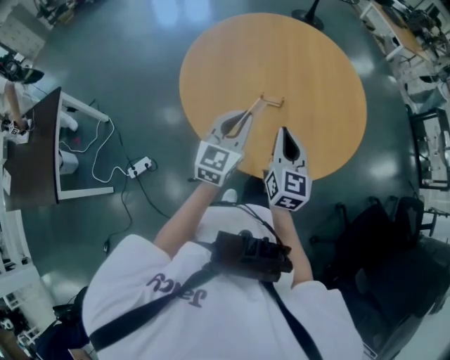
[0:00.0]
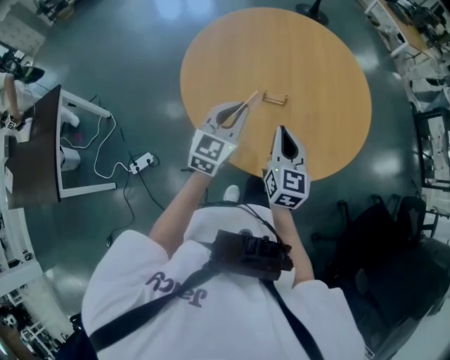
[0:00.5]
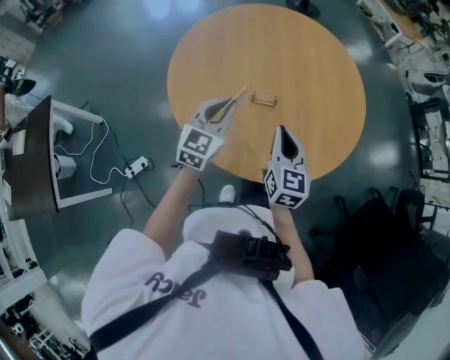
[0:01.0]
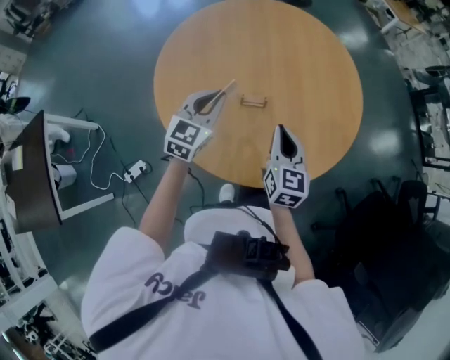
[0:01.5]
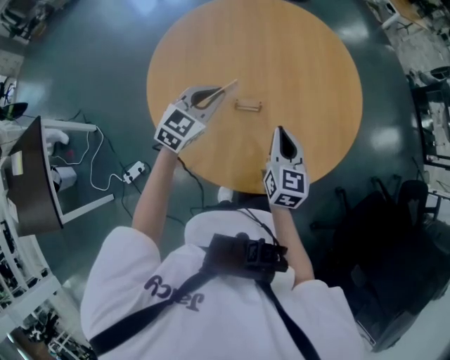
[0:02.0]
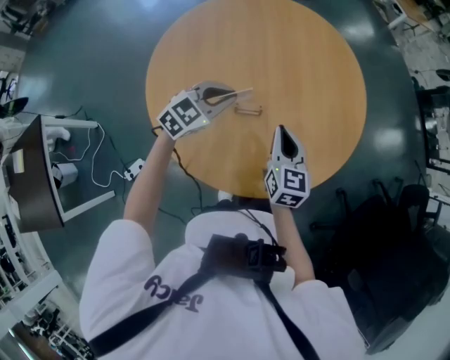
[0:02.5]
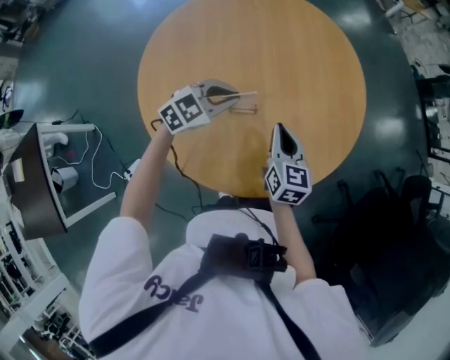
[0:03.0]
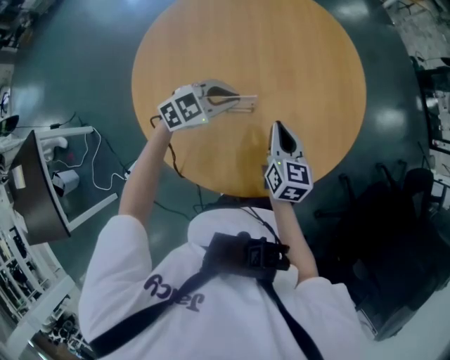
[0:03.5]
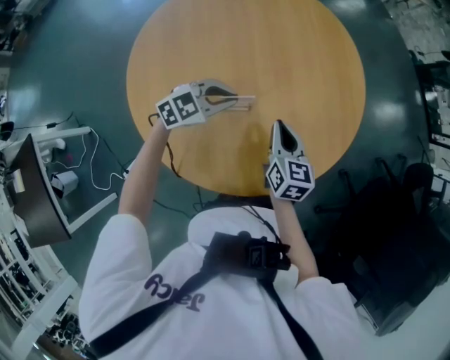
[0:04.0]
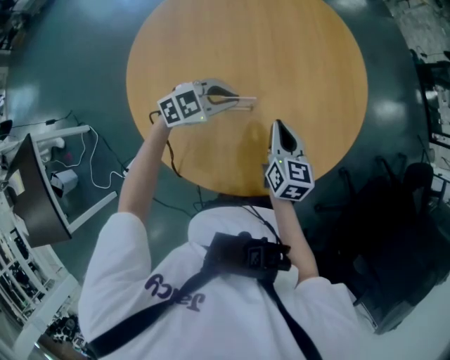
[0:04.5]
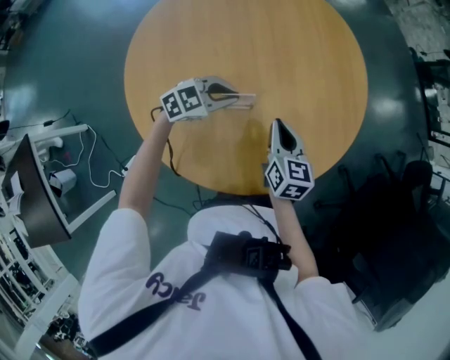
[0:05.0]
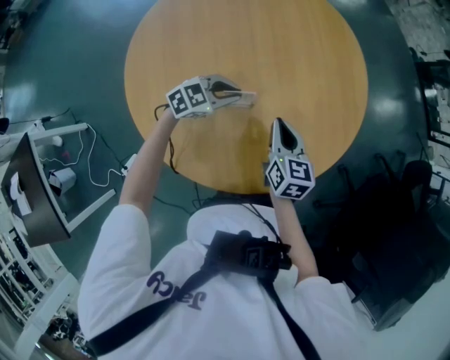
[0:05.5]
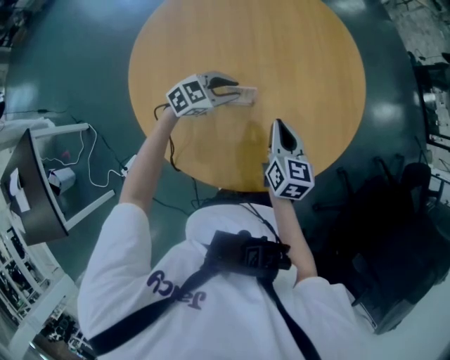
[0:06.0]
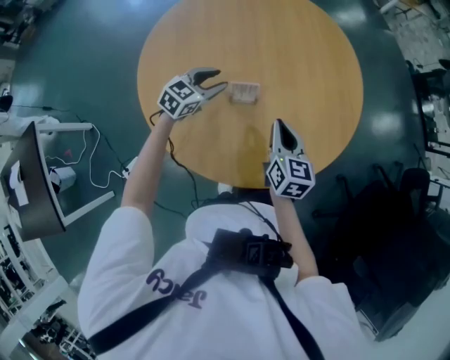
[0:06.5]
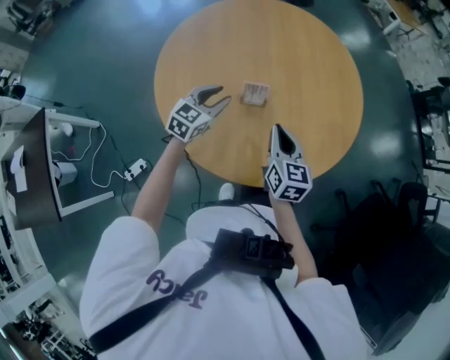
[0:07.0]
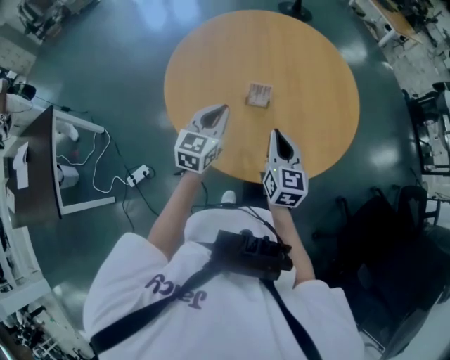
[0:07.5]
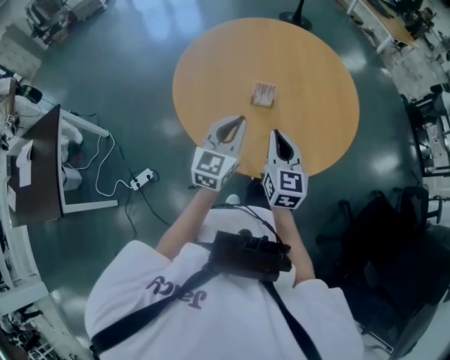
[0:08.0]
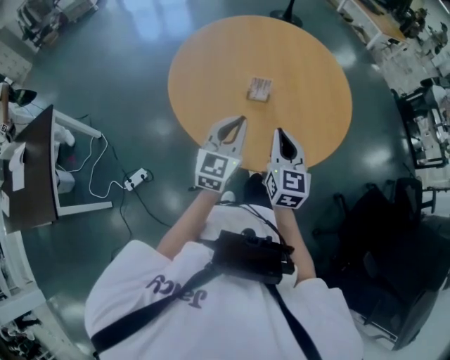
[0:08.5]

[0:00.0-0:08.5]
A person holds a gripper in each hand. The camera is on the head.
0:00.0 to 0:02.0: The left gripper shifts roughly 15 cm forward, and turns by roughly 30 degrees, while the right gripper shifts about 10 cm forward and to the right.
0:02.0 to 0:04.0: The left gripper heads downward and to the right, covering some 10 cm, and rotates roughly 40 degrees. Meanwhile the right gripper moves roughly 5 cm.
0:04.0 to 0:06.5: The left gripper is displaced to the left by some 10 cm, turns by about 30 degrees, and opens its fingers.
0:06.5 to 0:08.5: The left gripper goes some 25 cm backward and upward, swivels some 40 degrees, and closes up. The right gripper goes some 15 cm backward and upward, and turns by some 20 degrees.

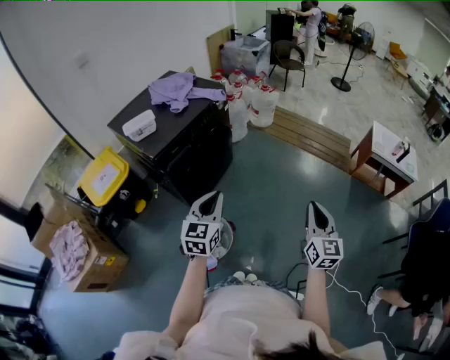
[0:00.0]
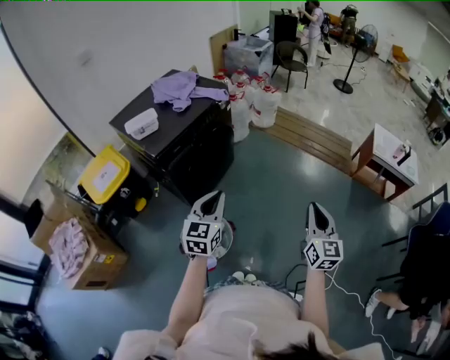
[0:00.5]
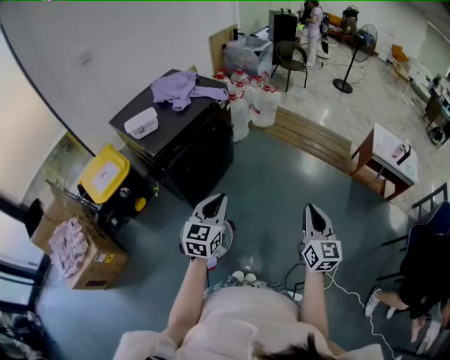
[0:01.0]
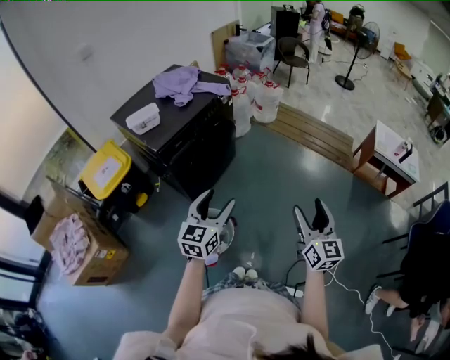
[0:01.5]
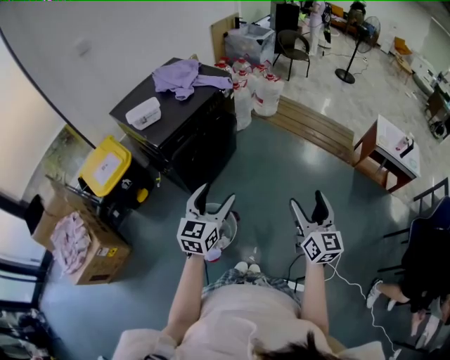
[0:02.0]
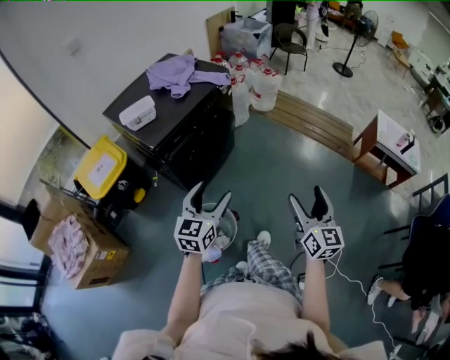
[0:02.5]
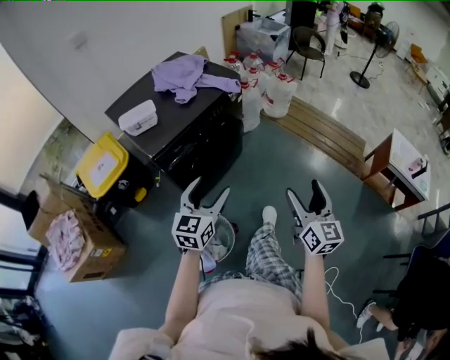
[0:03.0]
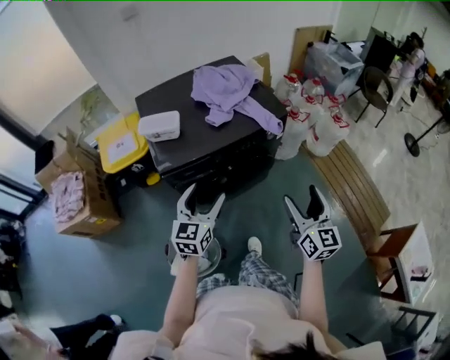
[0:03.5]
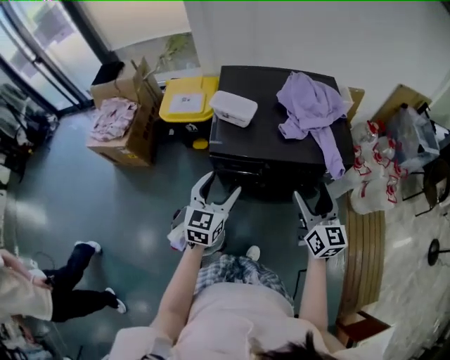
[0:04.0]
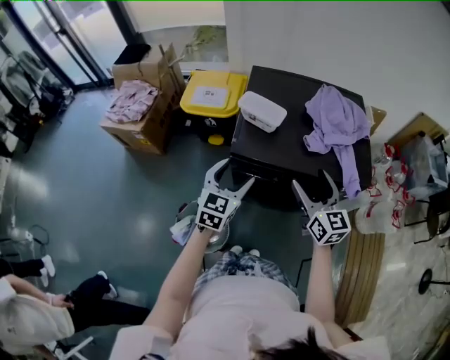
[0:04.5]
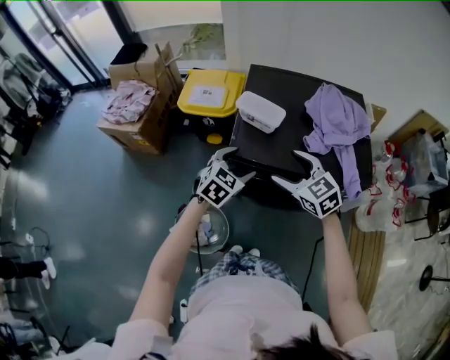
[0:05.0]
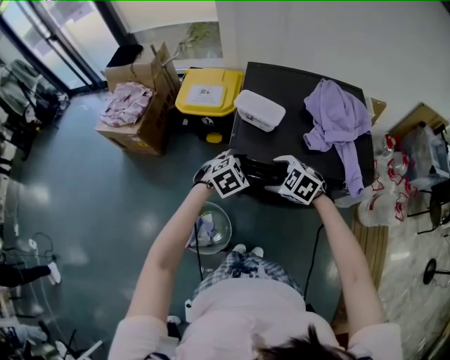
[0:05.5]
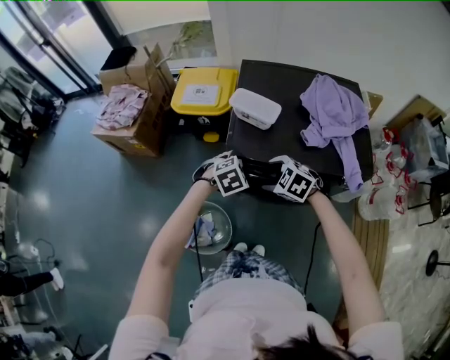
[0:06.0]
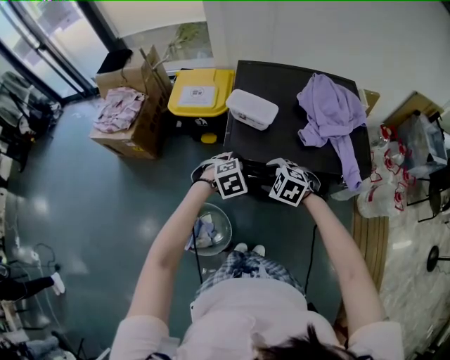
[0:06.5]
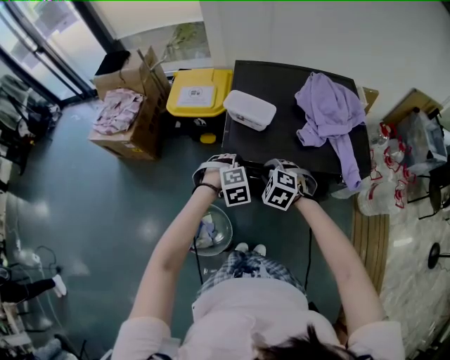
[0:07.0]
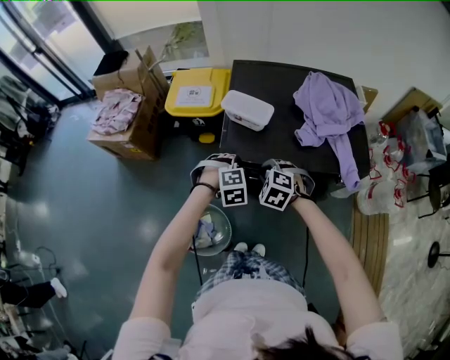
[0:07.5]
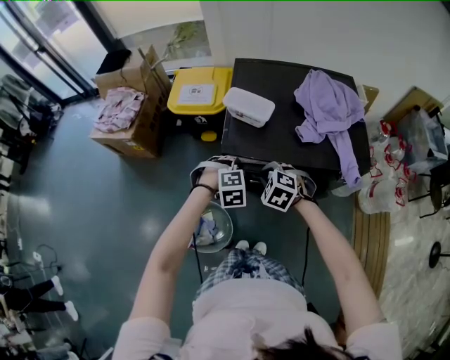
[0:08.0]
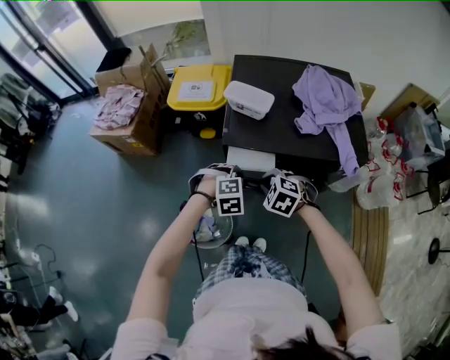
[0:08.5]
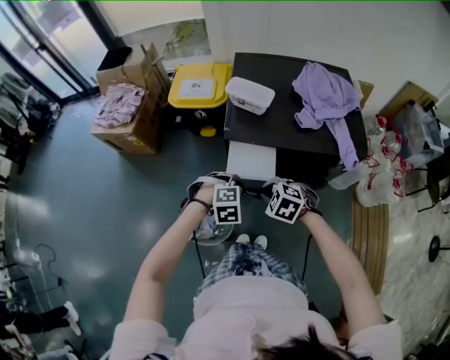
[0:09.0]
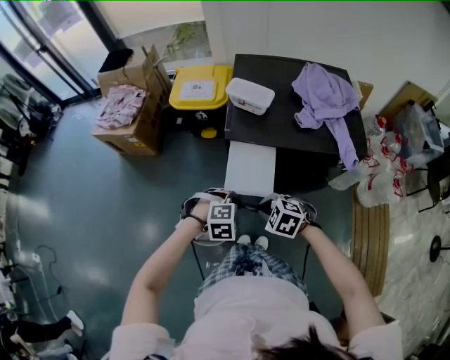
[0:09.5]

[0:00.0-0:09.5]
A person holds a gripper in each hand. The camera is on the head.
0:00.0 to 0:02.0: The left gripper opens up; the right gripper is displaced to the left by some 5 cm, and opens up.
0:02.0 to 0:04.0: The right gripper shifts by some 60 cm, and turns by about 60 degrees; the left gripper ends up some 30 cm from where it was, and turns by some 60 degrees.
0:04.0 to 0:05.5: The right gripper goes some 25 cm to the left, downward and forward, and angles its fingers downward, by roughly 50 degrees, while the left gripper moves downward and forward, some 15 cm, and points its fingers approximately 40 degrees further downward.
0:05.5 to 0:07.5: The left gripper swivels about 30 degrees, and closes up. Meanwhile the right gripper changes its angle by about 20 degrees, and closes up.
0:07.5 to 0:09.5: The two grippers go approximately 20 cm backward.

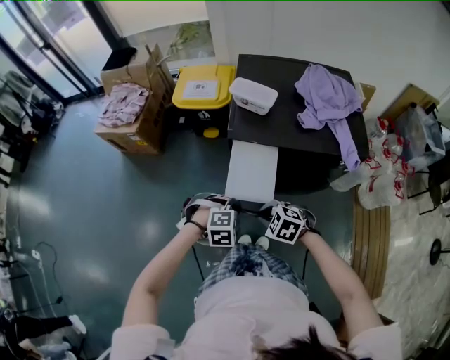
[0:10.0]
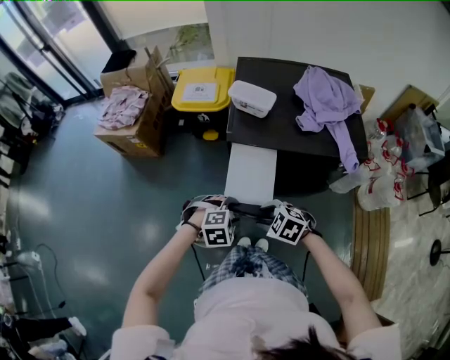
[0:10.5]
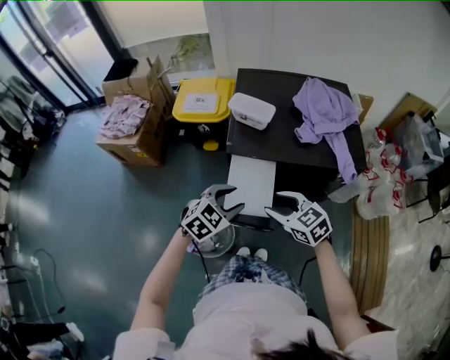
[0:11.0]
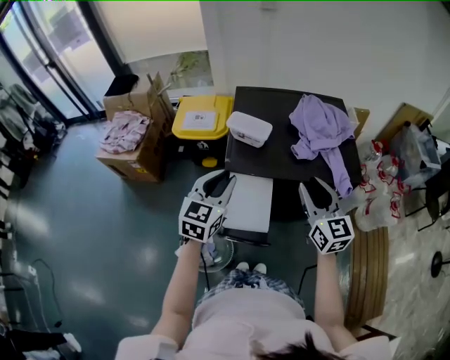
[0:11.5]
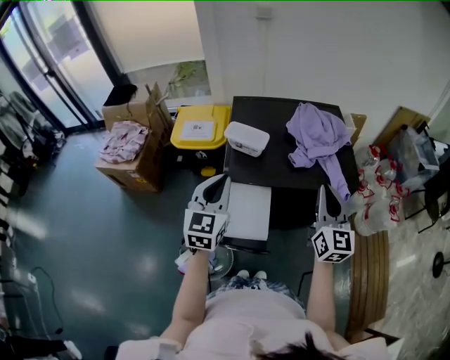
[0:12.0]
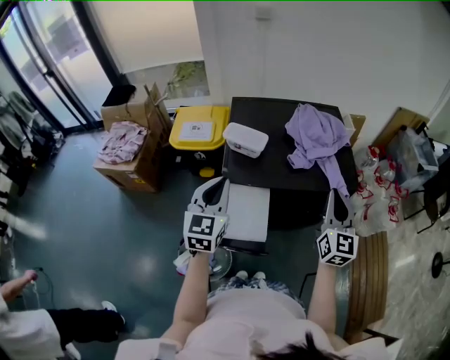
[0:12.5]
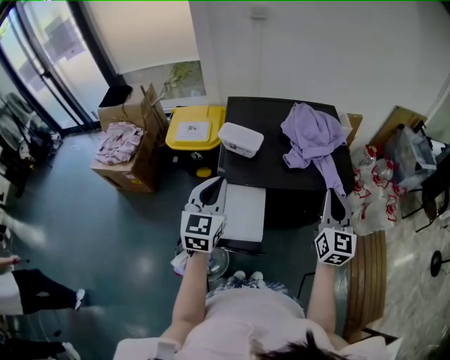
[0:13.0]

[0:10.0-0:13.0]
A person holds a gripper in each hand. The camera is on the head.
0:10.0 to 0:11.5: The two grippers go roughly 25 cm upward. The right gripper tilts its fingers about 60 degrees upward; the left gripper tilts its fingers about 50 degrees upward.
0:11.5 to 0:13.0: The right gripper goes roughly 10 cm to the right, swivels some 20 degrees, and closes its fingers.

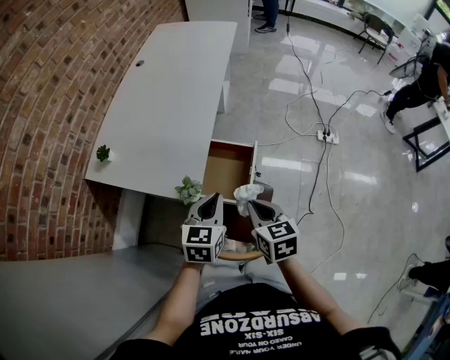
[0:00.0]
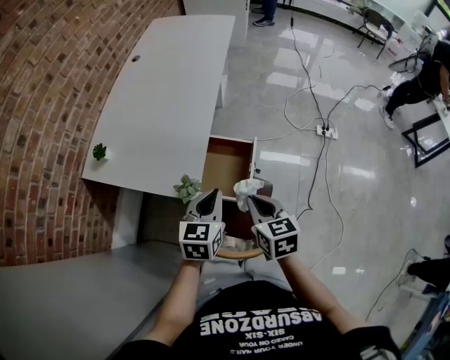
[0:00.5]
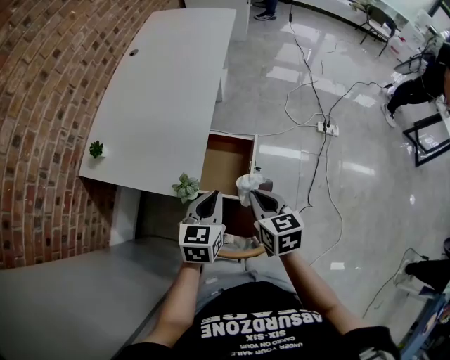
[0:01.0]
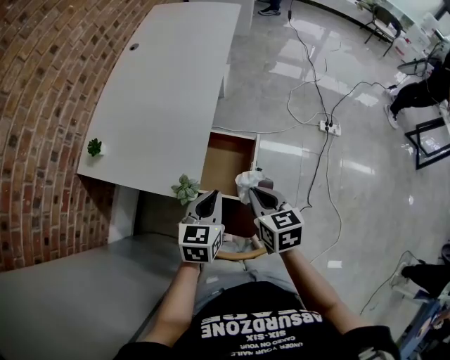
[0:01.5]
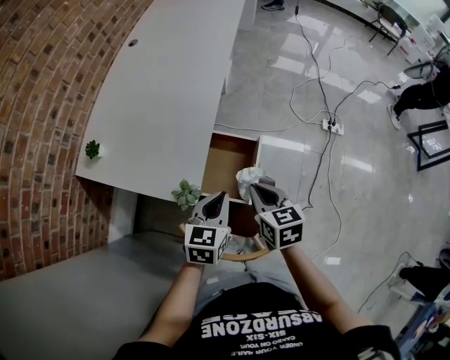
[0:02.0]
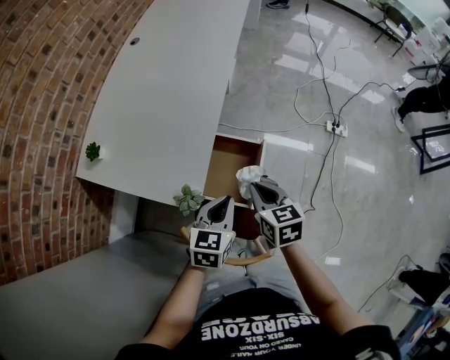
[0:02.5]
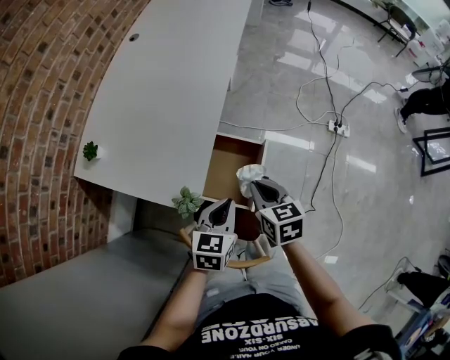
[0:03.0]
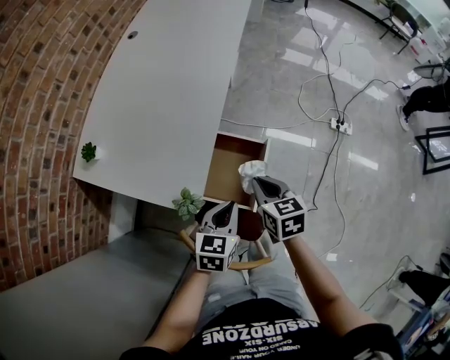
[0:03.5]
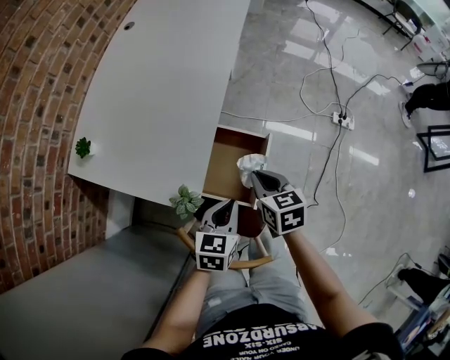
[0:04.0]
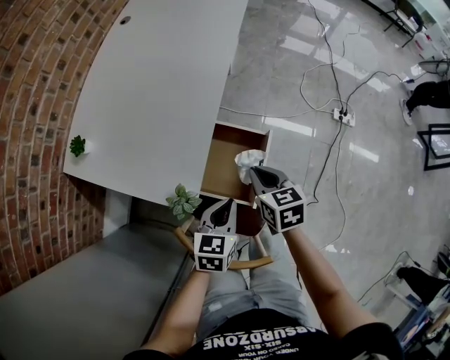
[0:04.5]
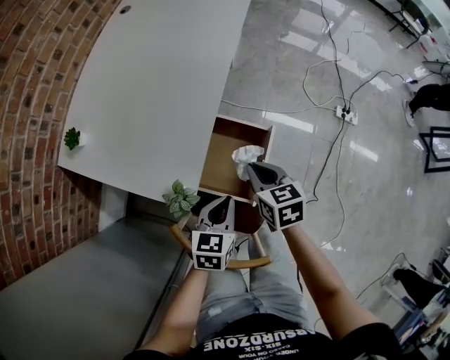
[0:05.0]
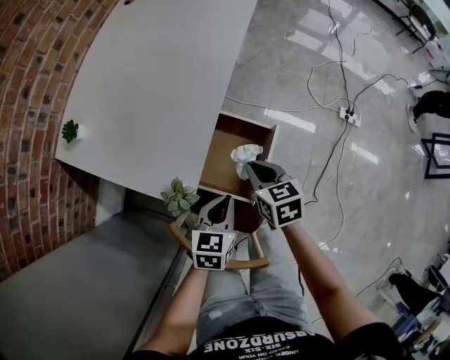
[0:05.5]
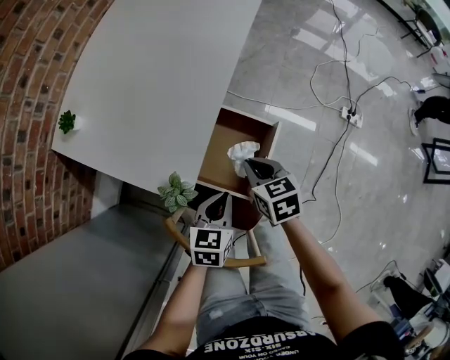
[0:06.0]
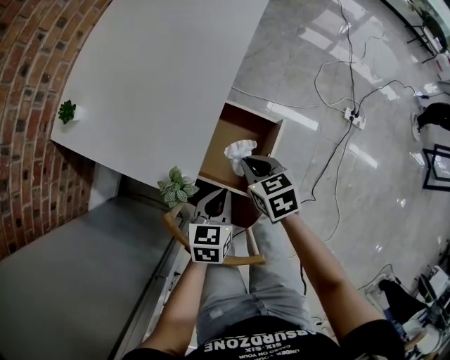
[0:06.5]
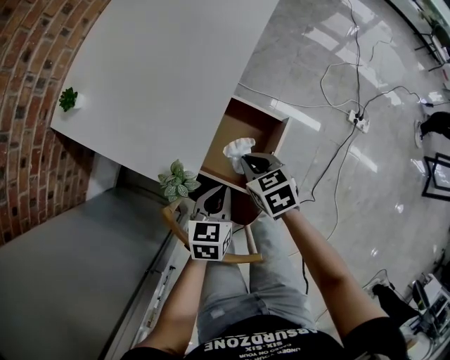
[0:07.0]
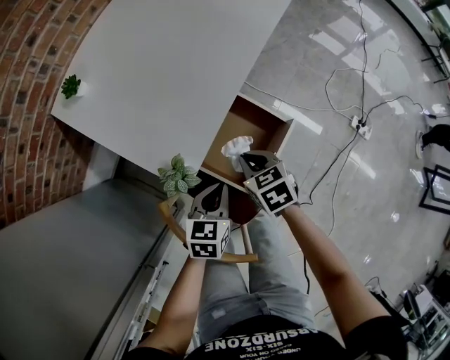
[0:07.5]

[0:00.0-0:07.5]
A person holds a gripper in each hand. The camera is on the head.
0:00.0 to 0:02.0: The right gripper is displaced forward by approximately 10 cm. Meanwhile the left gripper shifts approximately 5 cm forward.
0:02.0 to 0:04.0: The right gripper goes some 10 cm downward and forward. Meanwhile the left gripper shifts some 10 cm downward.
0:04.0 to 0:05.5: Both grippers move downward, roughly 5 cm.
0:05.5 to 0:07.5: The right gripper heads downward, covering about 5 cm, and swivels about 30 degrees; the left gripper shifts by approximately 5 cm.
